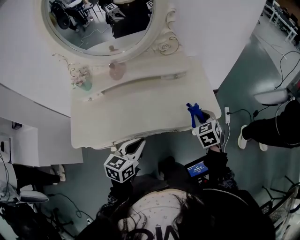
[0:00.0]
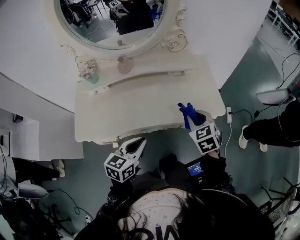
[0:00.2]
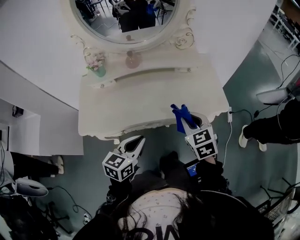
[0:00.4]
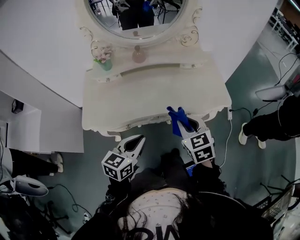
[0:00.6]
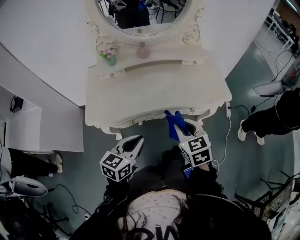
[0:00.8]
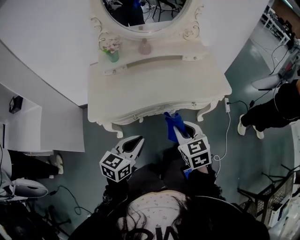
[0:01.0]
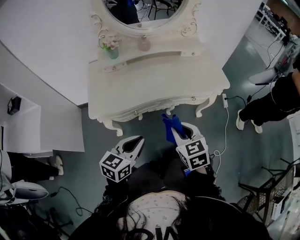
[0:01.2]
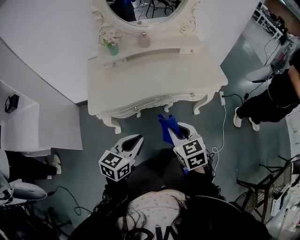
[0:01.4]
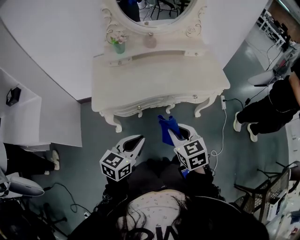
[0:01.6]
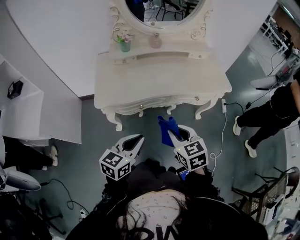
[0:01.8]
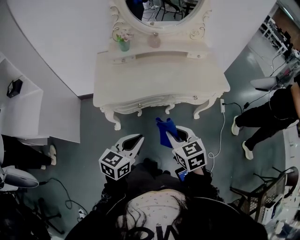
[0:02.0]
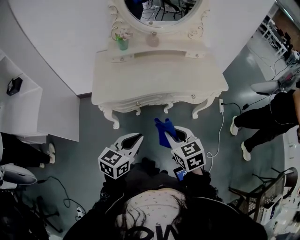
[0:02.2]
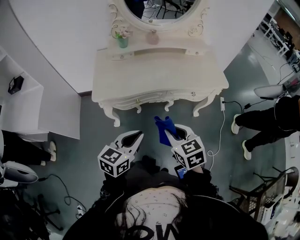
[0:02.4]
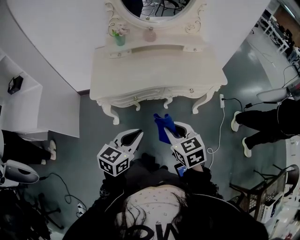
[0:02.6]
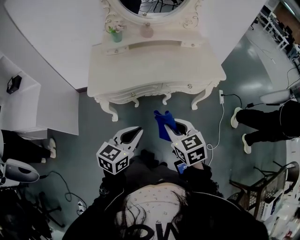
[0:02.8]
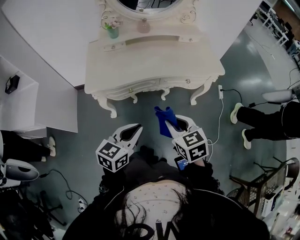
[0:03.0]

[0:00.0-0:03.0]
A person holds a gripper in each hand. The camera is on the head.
0.0 to 1.6 s: Both grippers move backward and to the left, some 35 cm.
1.6 to 3.0 s: The left gripper ends up roughly 5 cm from where it was. Meanwhile the right gripper shifts by approximately 5 cm.

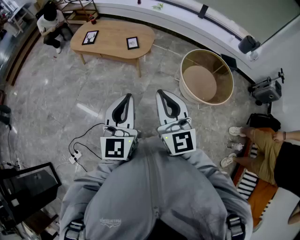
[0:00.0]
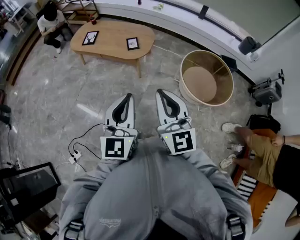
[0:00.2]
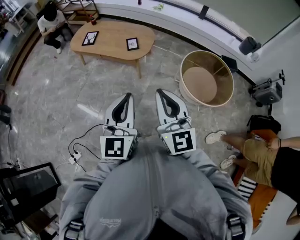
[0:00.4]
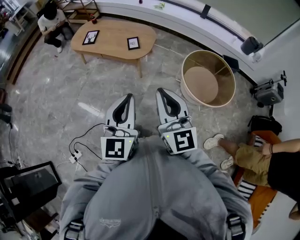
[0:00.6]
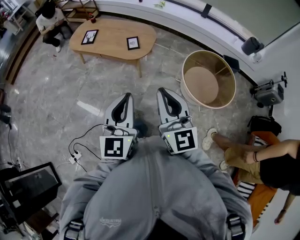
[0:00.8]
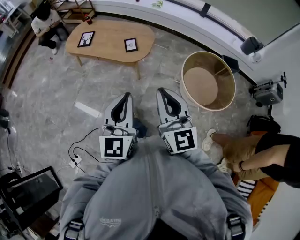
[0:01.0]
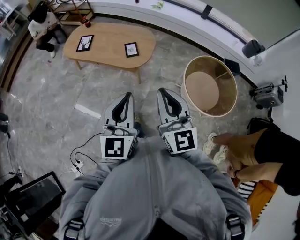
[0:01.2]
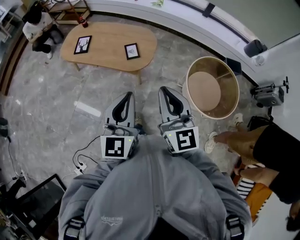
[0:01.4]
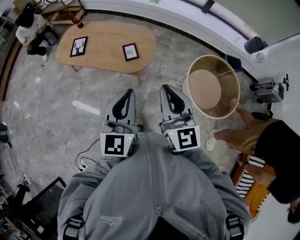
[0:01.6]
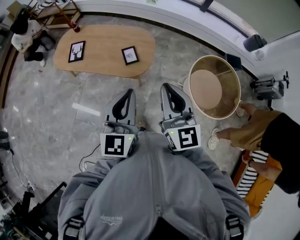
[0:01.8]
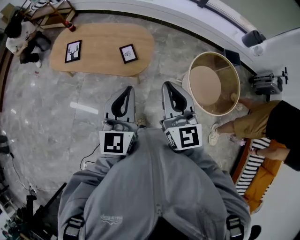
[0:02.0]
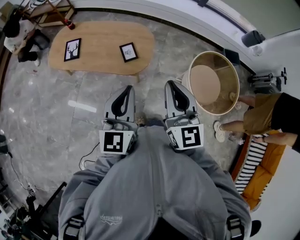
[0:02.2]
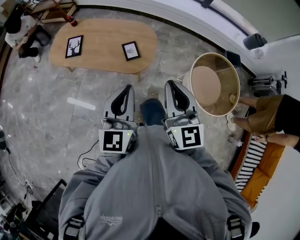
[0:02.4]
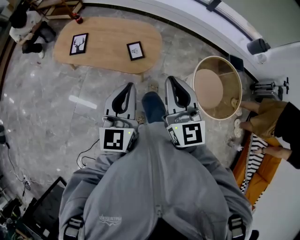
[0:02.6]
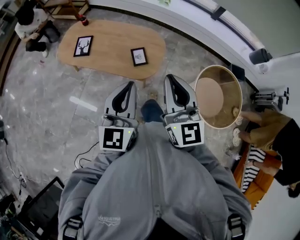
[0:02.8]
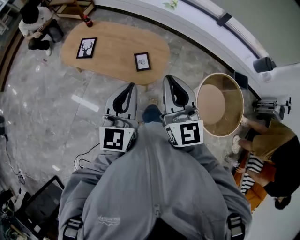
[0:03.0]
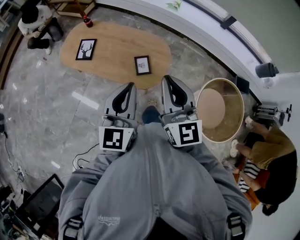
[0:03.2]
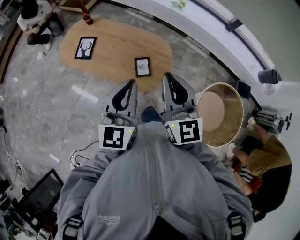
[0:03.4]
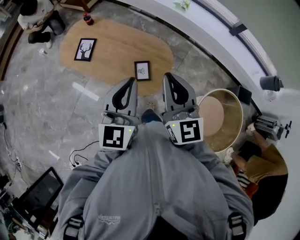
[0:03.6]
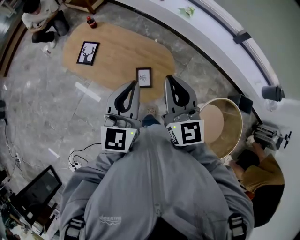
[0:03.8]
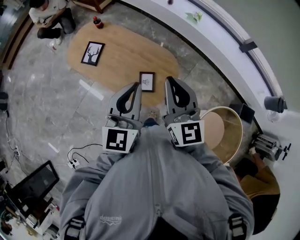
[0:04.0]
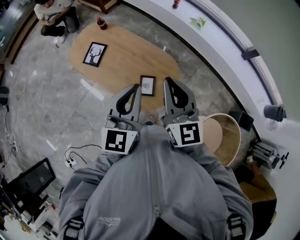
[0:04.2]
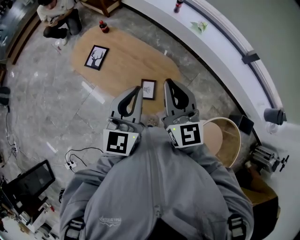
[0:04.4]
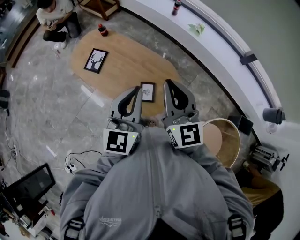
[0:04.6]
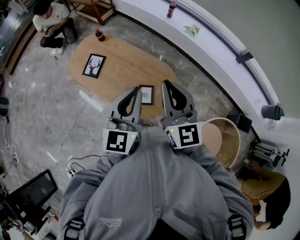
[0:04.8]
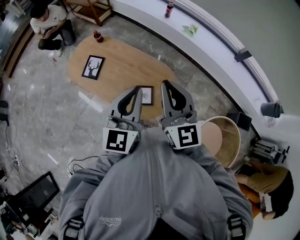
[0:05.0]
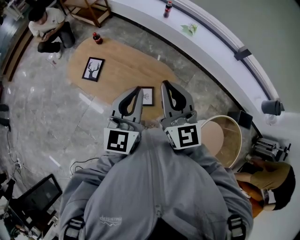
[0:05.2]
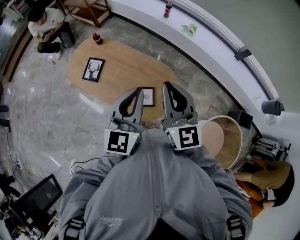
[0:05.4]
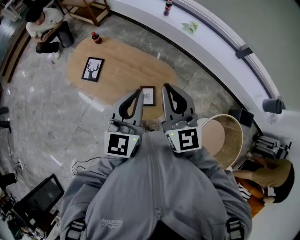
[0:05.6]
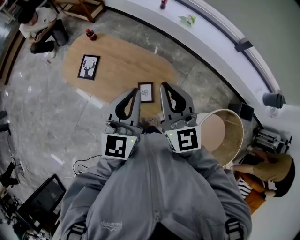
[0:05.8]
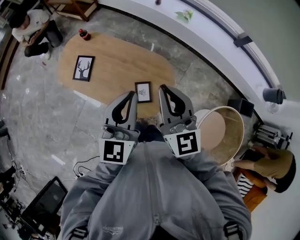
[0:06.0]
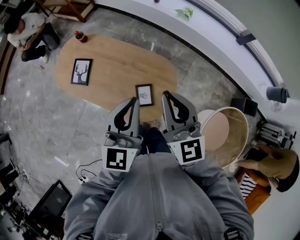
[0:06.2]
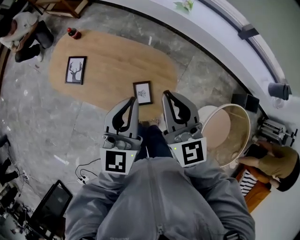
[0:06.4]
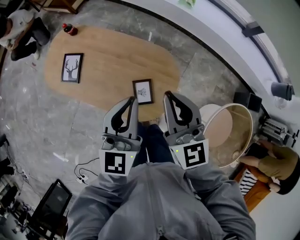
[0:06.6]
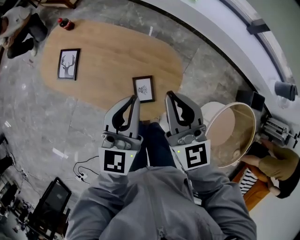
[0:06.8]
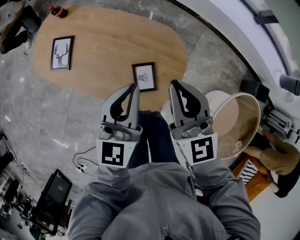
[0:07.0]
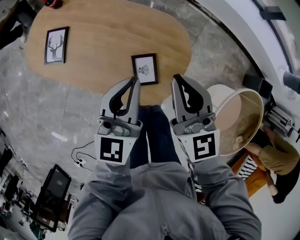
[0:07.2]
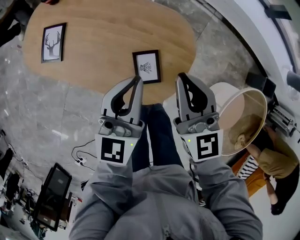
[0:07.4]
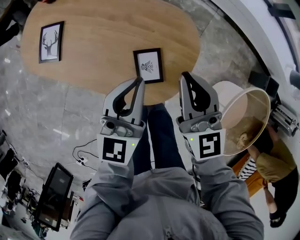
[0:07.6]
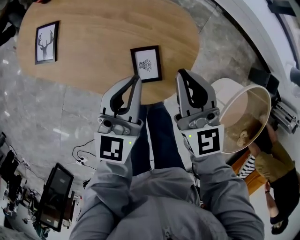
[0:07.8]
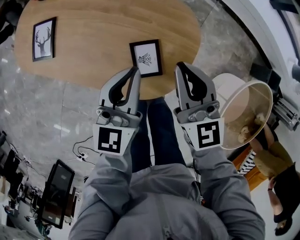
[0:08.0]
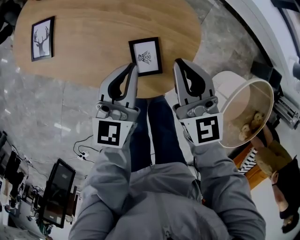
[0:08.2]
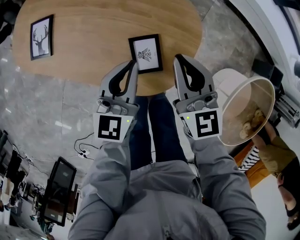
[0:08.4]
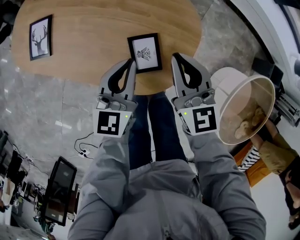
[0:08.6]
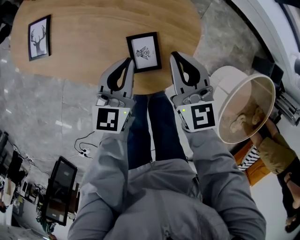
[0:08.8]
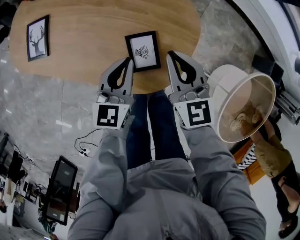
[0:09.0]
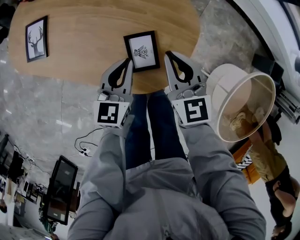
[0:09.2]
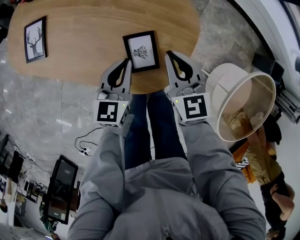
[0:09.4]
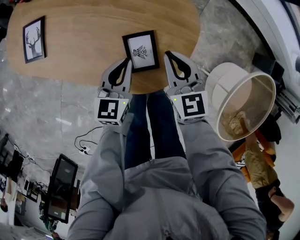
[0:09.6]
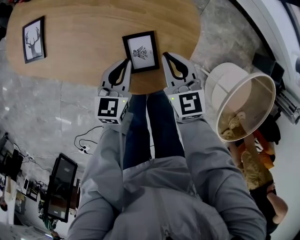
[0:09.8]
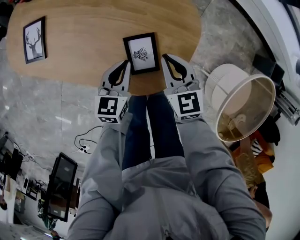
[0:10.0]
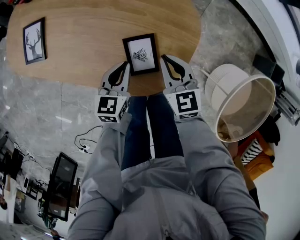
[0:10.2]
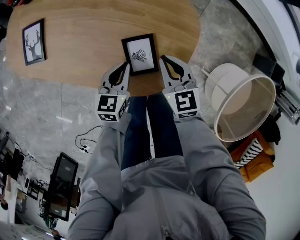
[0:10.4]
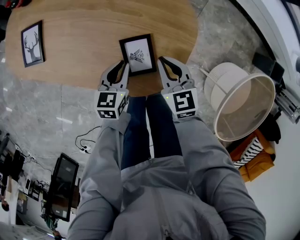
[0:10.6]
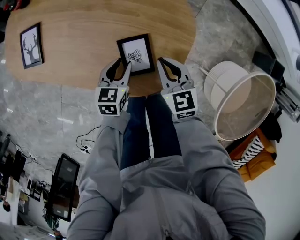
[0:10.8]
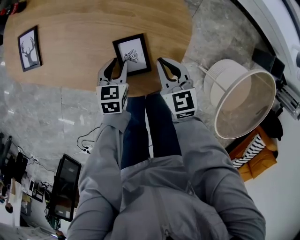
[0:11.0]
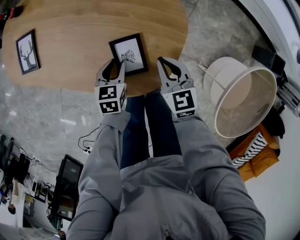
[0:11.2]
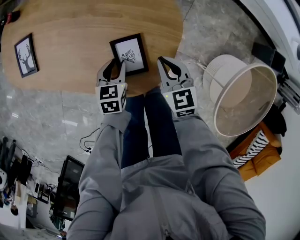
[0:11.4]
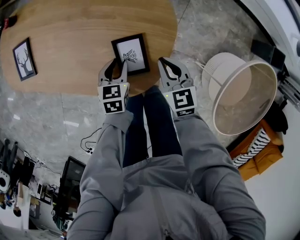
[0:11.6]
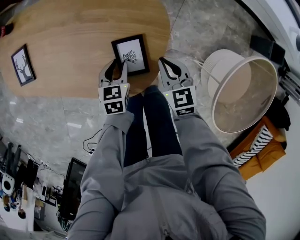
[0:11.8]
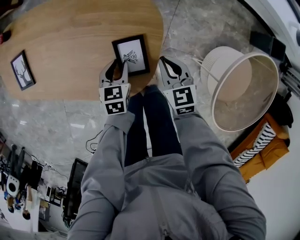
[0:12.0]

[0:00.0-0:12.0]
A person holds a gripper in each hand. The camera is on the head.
0.0 to 1.6 s: The grippers both shift forward by about 35 cm.
1.6 to 3.0 s: The grippers both shift forward and to the left by roughly 20 cm.
3.0 to 4.4 s: Both grippers move forward, some 30 cm.
4.4 to 6.0 s: Both grippers move forward, roughly 5 cm.
6.0 to 7.6 s: Both grippers move downward, roughly 35 cm.
7.6 to 9.0 s: The grippers both shift downward by some 15 cm.
9.0 to 10.4 s: Both grippers move downward, approximately 10 cm.
10.4 to 12.0 s: The two grippers go about 15 cm to the right. The left gripper opens up.

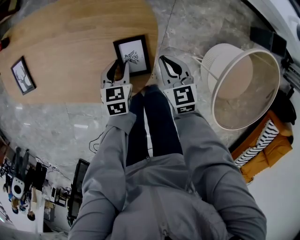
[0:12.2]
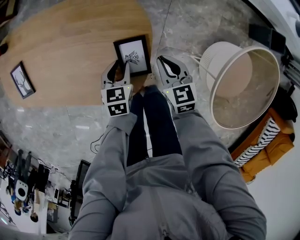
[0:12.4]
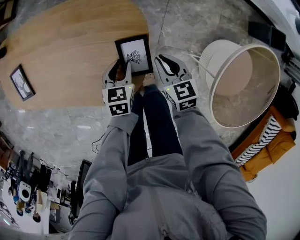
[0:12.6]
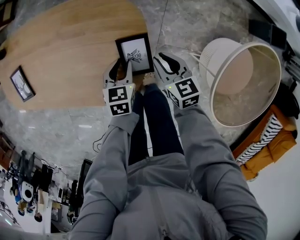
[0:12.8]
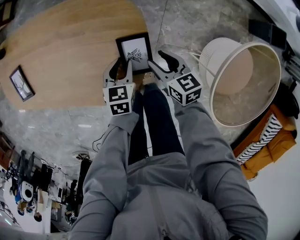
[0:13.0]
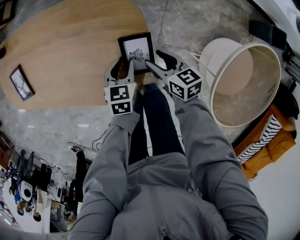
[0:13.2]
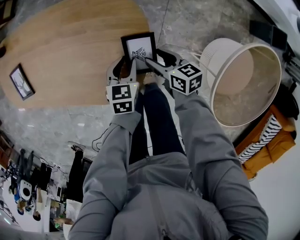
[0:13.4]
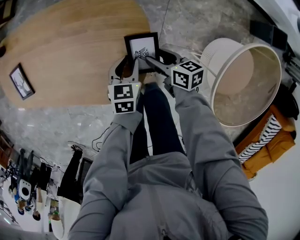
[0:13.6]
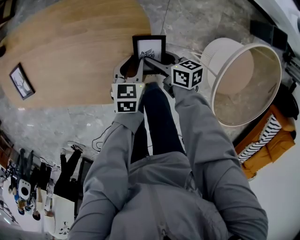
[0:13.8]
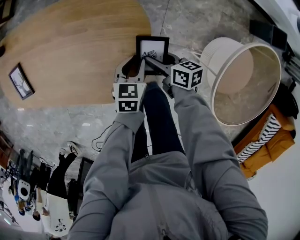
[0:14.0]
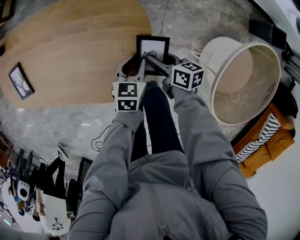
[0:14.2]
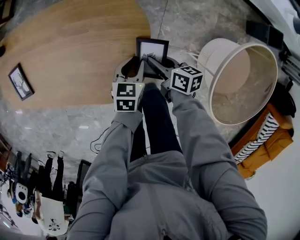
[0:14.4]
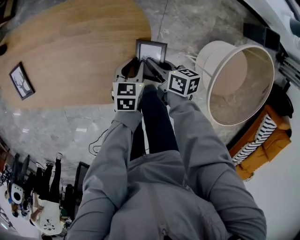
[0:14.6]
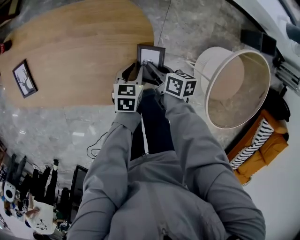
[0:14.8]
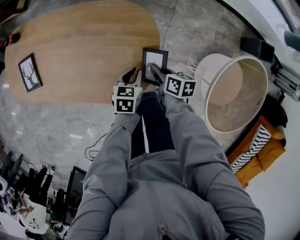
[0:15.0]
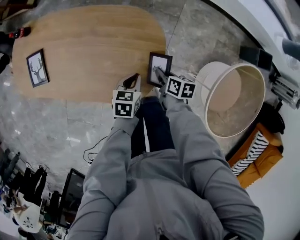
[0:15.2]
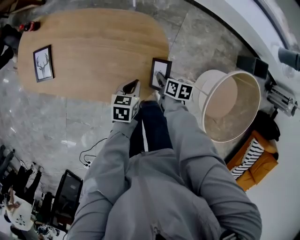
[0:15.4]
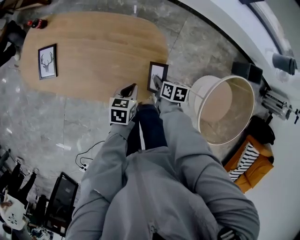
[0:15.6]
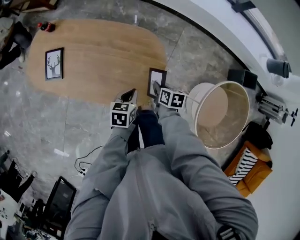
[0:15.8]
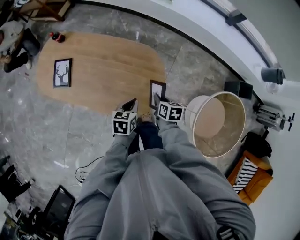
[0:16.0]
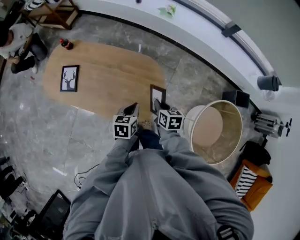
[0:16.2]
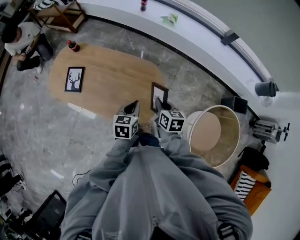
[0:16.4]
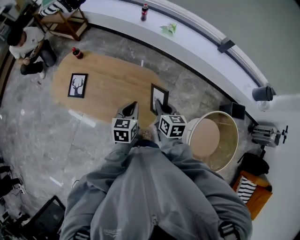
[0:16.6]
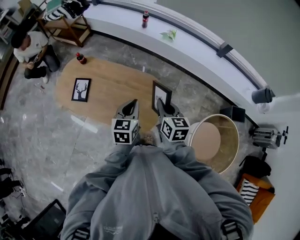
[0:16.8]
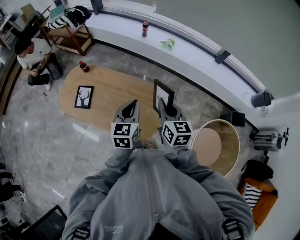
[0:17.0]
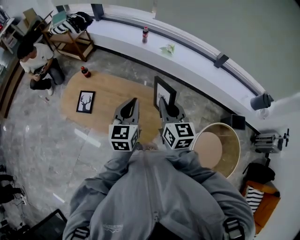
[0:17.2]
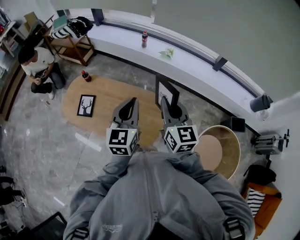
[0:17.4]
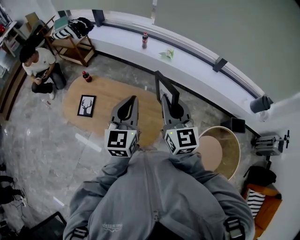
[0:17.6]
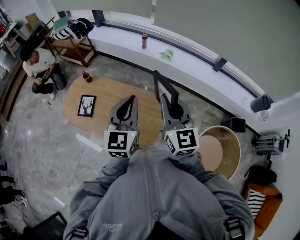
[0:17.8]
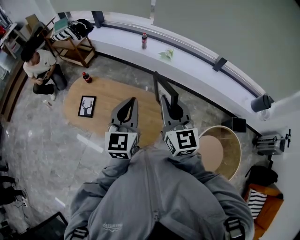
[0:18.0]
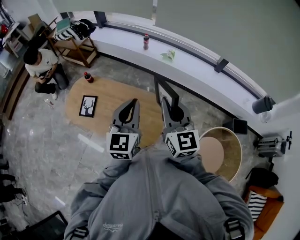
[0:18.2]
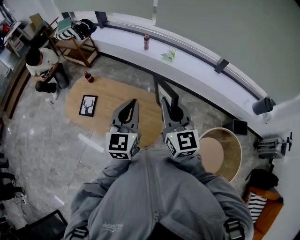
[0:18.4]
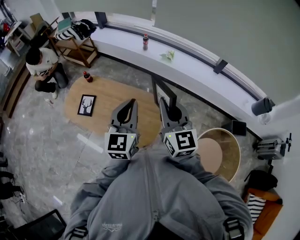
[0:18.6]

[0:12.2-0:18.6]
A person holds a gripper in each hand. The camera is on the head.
12.2 to 13.8 s: The left gripper is displaced to the right by some 10 cm. Meanwhile the right gripper goes approximately 5 cm downward, changes its angle by about 40 degrees, and opens up.
13.8 to 15.4 s: The left gripper heads upward and to the left, covering some 15 cm, and closes, while the right gripper shifts some 10 cm upward and to the left, rotates approximately 20 degrees, and closes its fingers.
15.4 to 17.0 s: The grippers both shift upward by about 50 cm. The left gripper angles its fingers upward, by approximately 30 degrees. Meanwhile the right gripper points its fingers about 30 degrees further upward.
17.0 to 18.6 s: Both grippers travel together upward, about 15 cm. The right gripper turns by approximately 20 degrees.

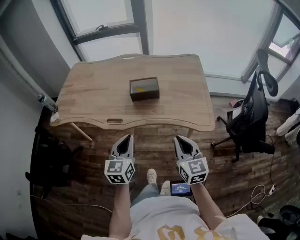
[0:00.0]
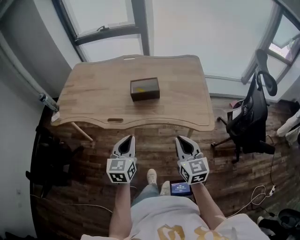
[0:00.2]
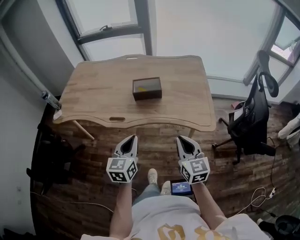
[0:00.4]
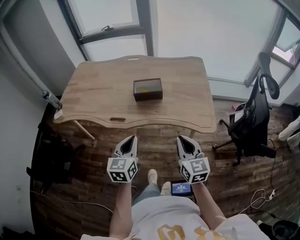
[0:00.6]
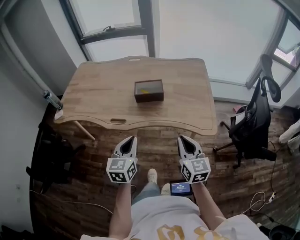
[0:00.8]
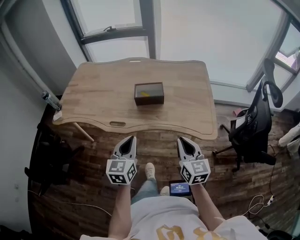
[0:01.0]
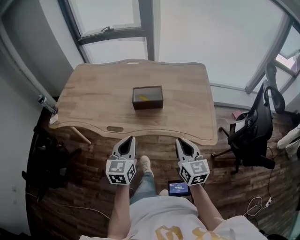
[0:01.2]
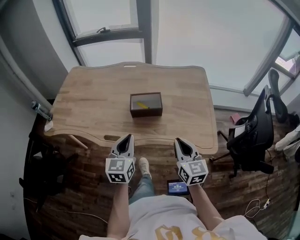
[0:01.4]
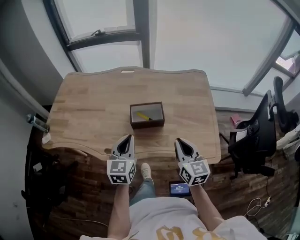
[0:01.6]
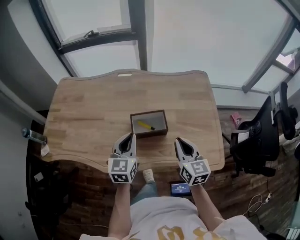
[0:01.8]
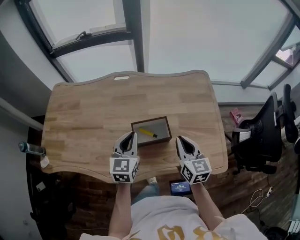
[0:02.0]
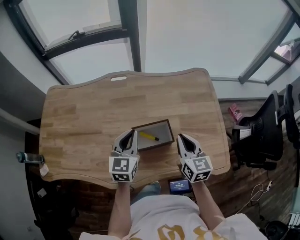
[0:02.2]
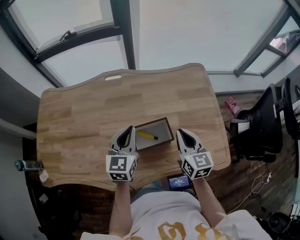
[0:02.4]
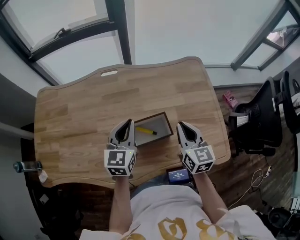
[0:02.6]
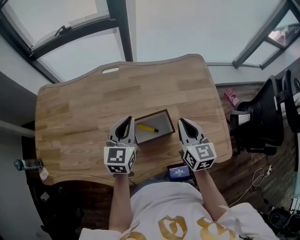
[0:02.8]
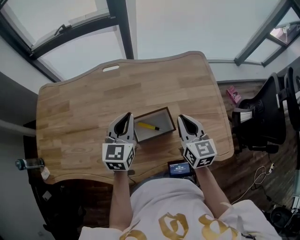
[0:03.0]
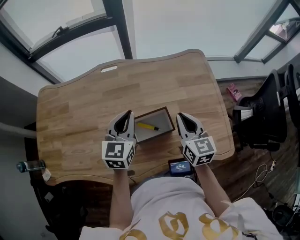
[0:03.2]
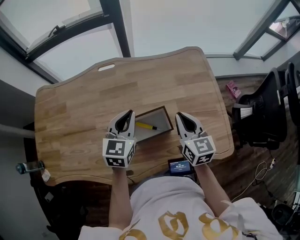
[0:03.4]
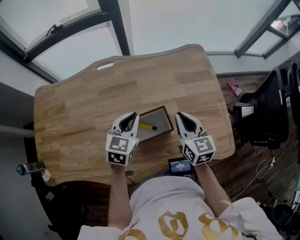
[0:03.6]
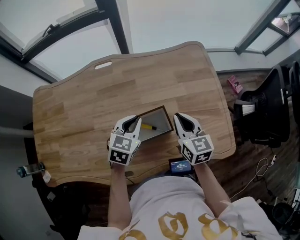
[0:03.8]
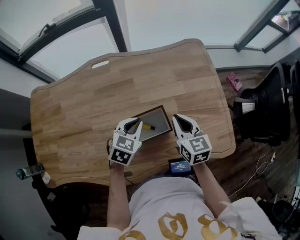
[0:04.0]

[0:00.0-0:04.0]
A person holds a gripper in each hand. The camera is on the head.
0.0 to 1.4 s: Both grippers move forward, approximately 15 cm.
1.4 to 2.6 s: Both grippers travel together forward, roughly 30 cm.
2.6 to 4.0 s: The right gripper moves downward, some 5 cm. Meanwhile the left gripper heads downward and to the right, covering some 15 cm, and changes its angle by roughly 40 degrees.
